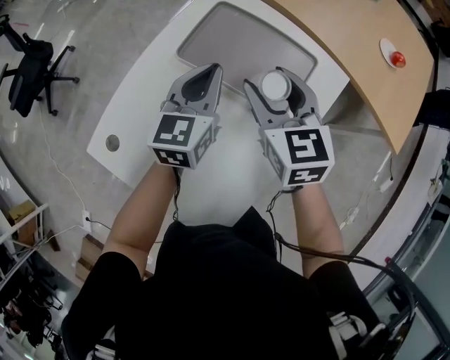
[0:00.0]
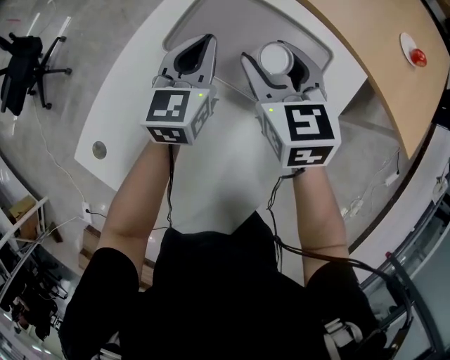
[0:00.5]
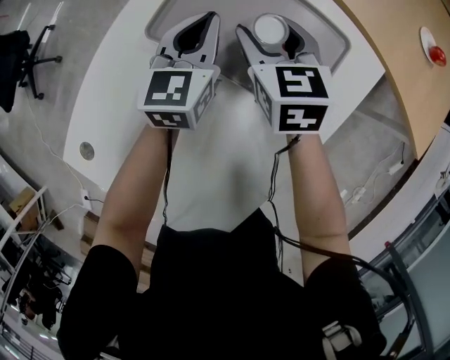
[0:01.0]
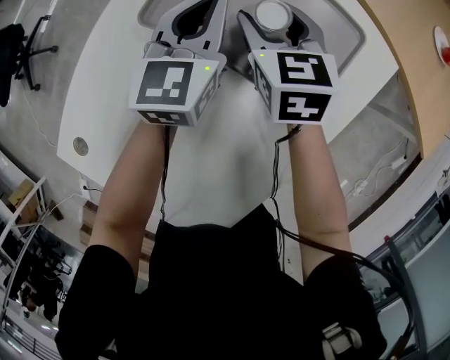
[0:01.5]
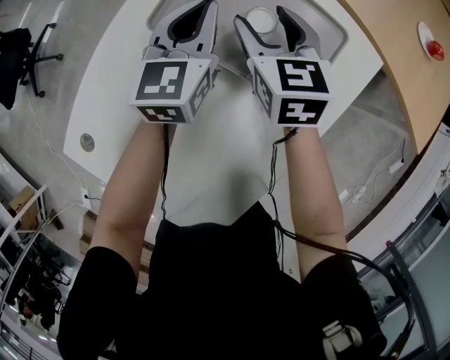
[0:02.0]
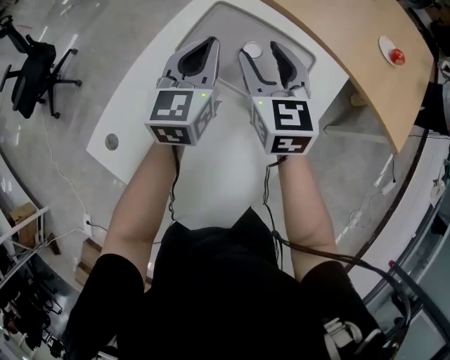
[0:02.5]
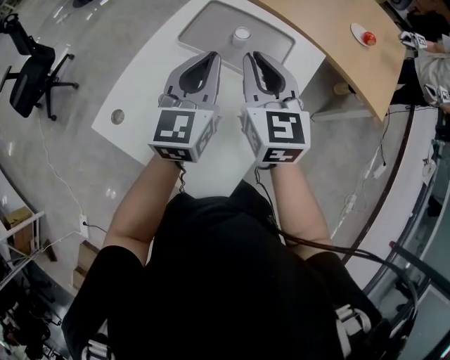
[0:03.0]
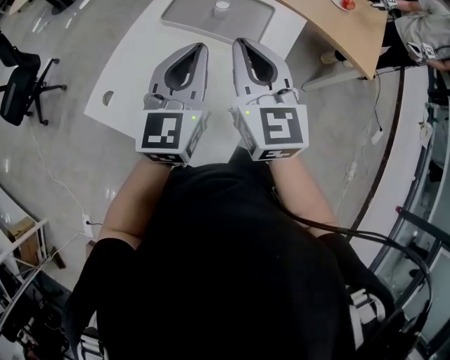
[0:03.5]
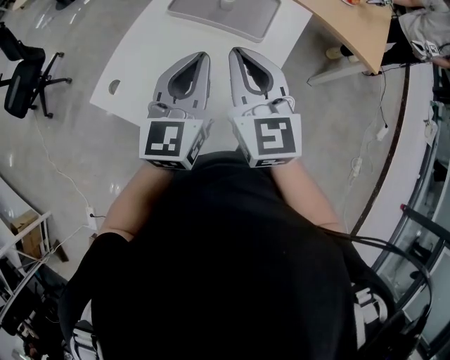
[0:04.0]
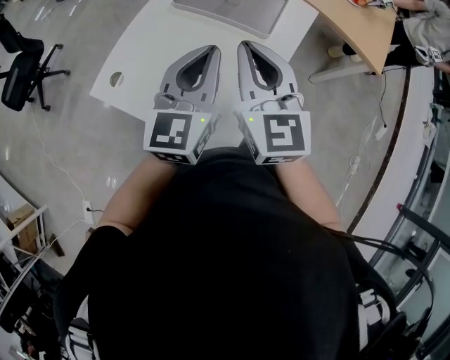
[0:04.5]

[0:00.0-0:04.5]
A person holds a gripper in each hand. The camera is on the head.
0:00.0 to 0:02.0: The right gripper travels downward and forward by some 20 cm. The left gripper travels forward and downward by some 15 cm.
0:02.0 to 0:04.5: The two grippers go roughly 50 cm backward and upward. The right gripper rotates some 20 degrees, and closes.

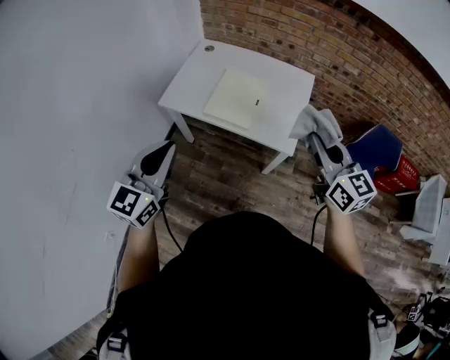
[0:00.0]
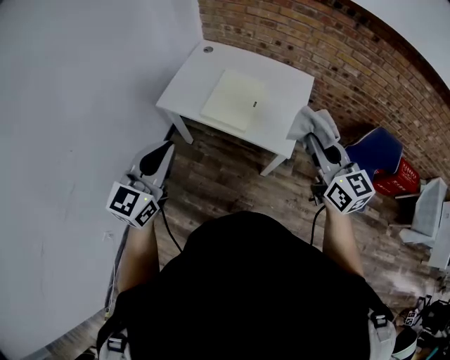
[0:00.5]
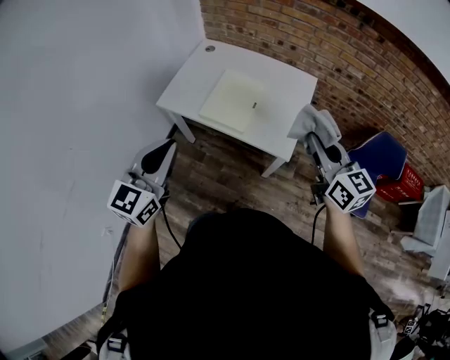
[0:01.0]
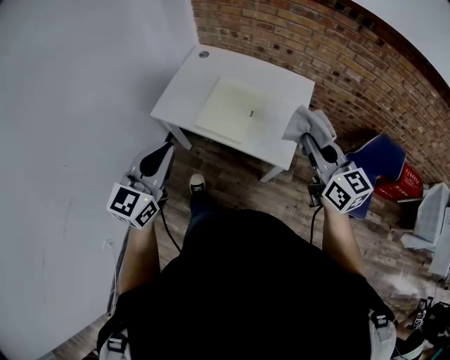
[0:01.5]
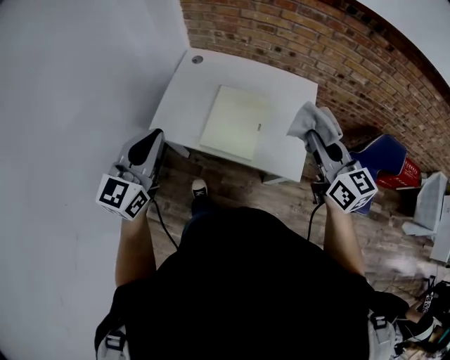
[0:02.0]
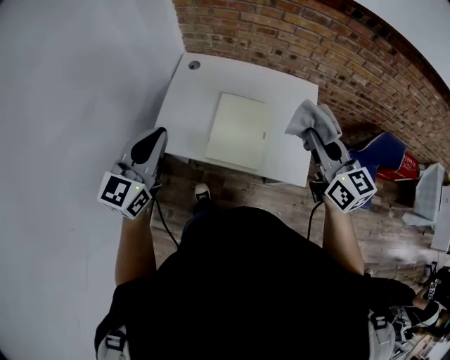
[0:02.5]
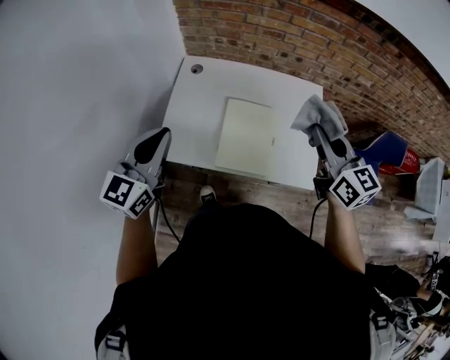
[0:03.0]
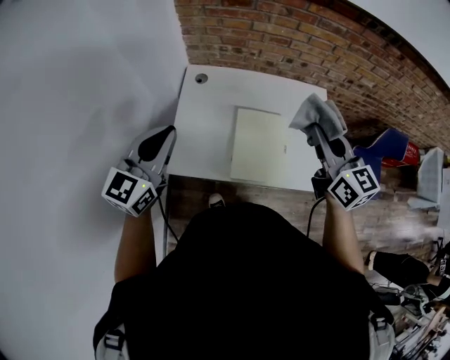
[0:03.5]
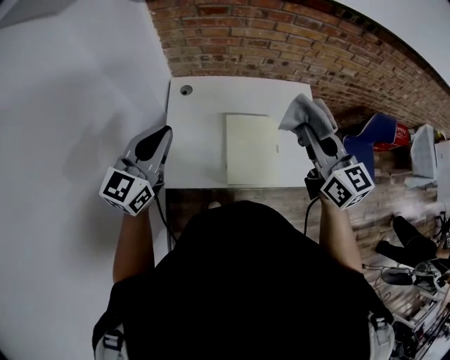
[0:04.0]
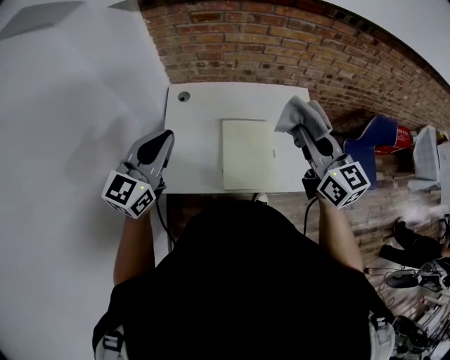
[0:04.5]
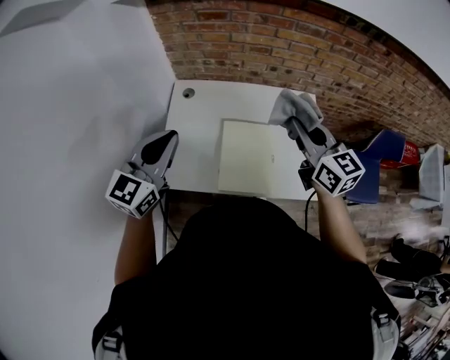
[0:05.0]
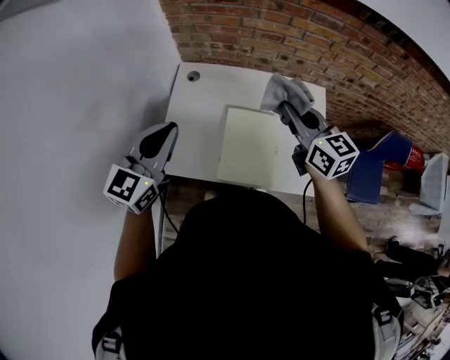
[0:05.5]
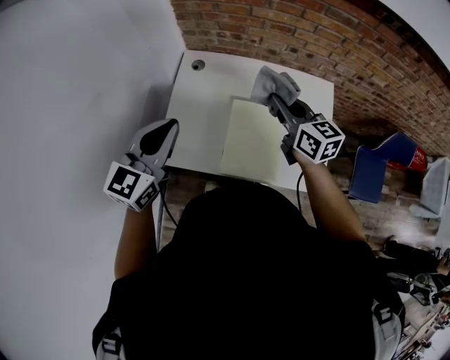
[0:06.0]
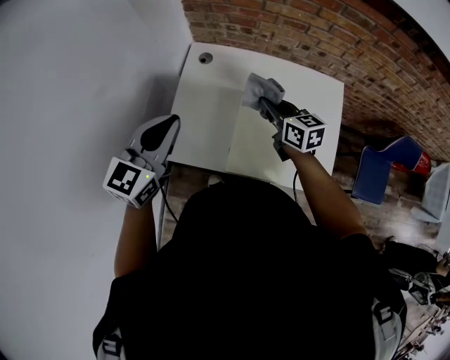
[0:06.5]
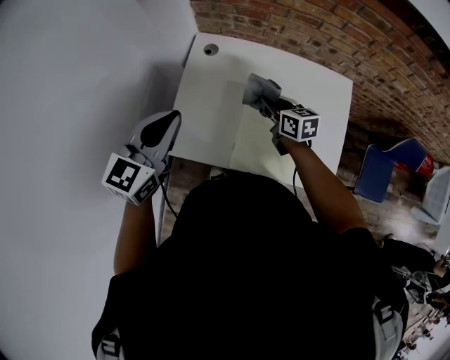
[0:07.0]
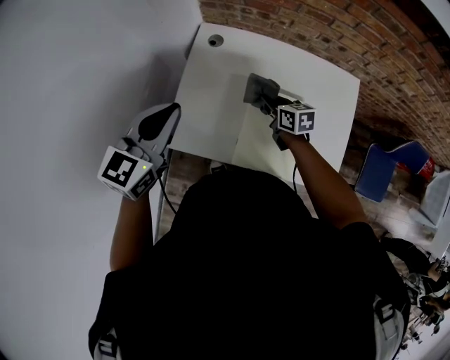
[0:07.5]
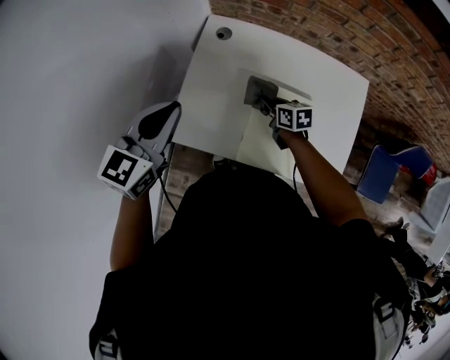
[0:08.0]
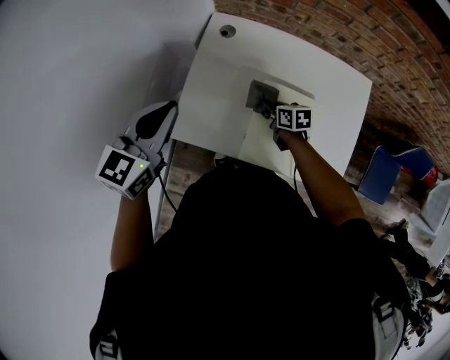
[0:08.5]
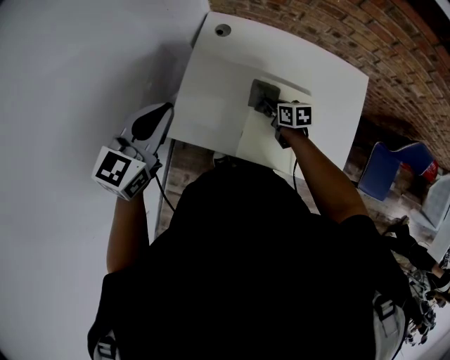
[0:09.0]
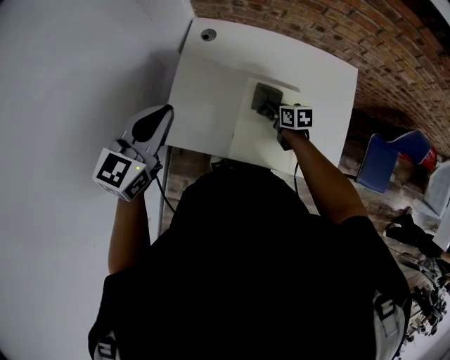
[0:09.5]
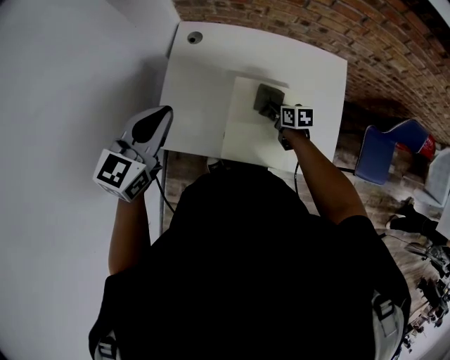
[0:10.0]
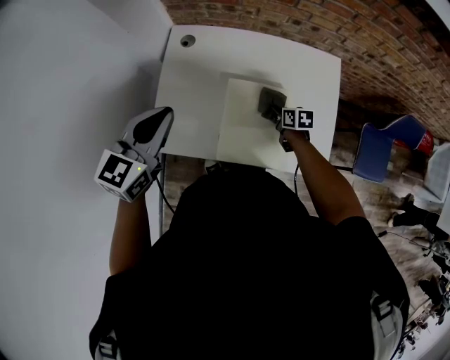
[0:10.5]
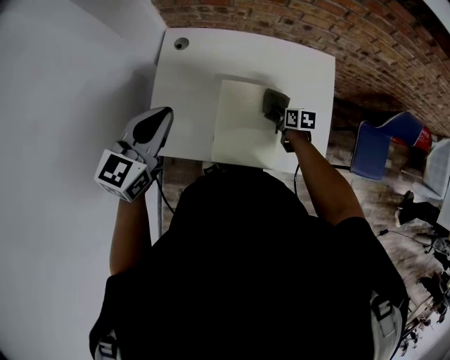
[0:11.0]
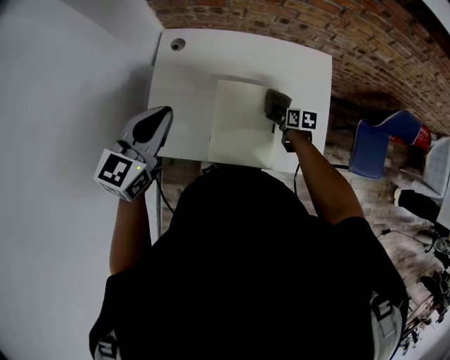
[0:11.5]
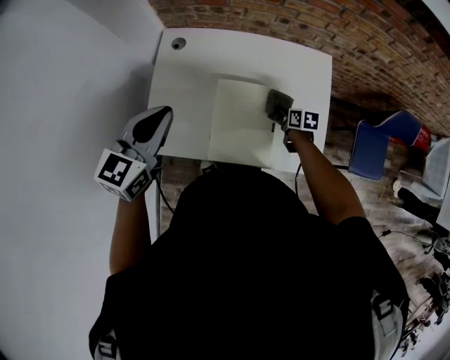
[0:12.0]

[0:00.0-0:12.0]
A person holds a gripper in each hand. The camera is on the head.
0:00.0 to 0:02.0: Both grippers move forward, about 20 cm.
0:02.0 to 0:04.0: The right gripper heads to the left and forward, covering roughly 20 cm; the left gripper travels forward and to the left by roughly 25 cm, and rotates roughly 20 degrees.
0:04.0 to 0:06.0: The right gripper shifts roughly 20 cm forward and downward. The left gripper is displaced to the right by approximately 5 cm.
0:06.0 to 0:08.0: The right gripper travels downward by some 30 cm, and turns by some 30 degrees. Meanwhile the left gripper travels to the left and downward by approximately 10 cm.
0:08.0 to 0:10.0: The right gripper moves to the right and backward, some 15 cm; the left gripper shifts some 5 cm to the right.
0:10.0 to 0:12.0: The right gripper is displaced to the right by roughly 10 cm. The left gripper heads to the right, covering some 5 cm.

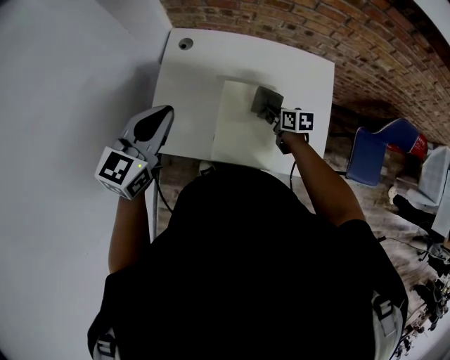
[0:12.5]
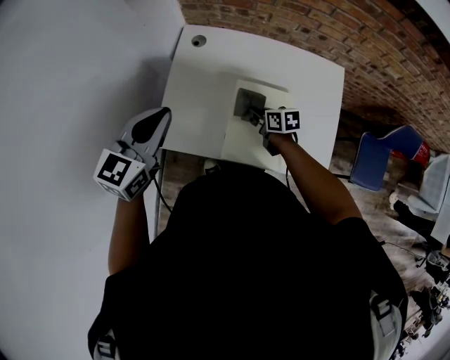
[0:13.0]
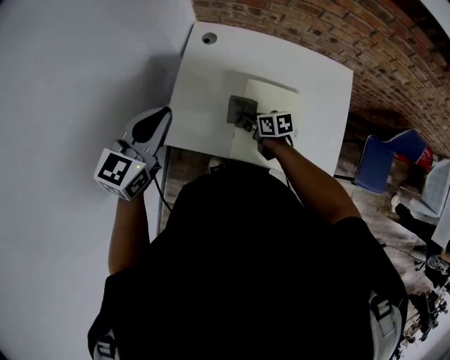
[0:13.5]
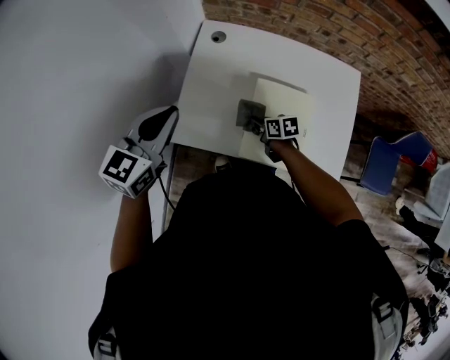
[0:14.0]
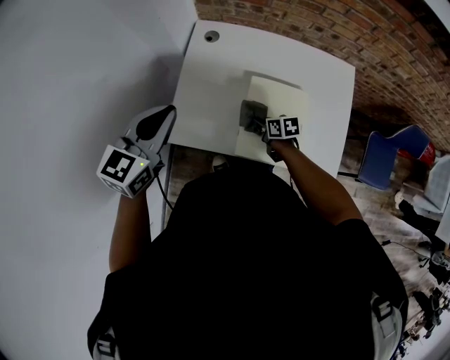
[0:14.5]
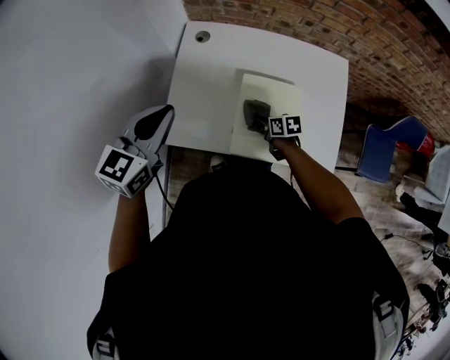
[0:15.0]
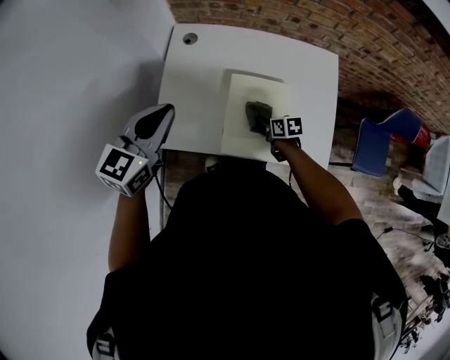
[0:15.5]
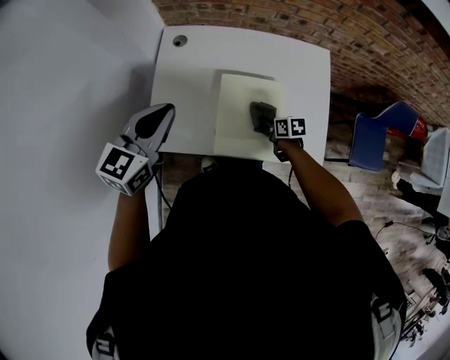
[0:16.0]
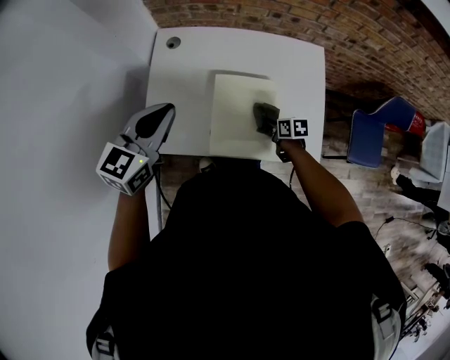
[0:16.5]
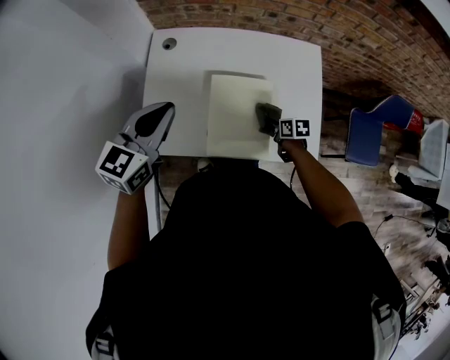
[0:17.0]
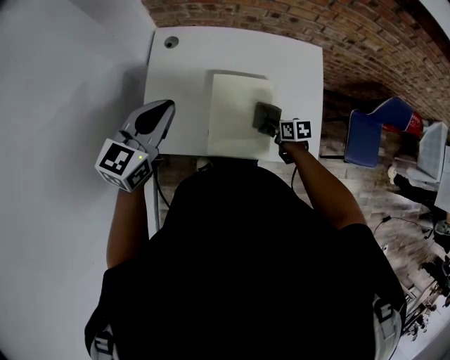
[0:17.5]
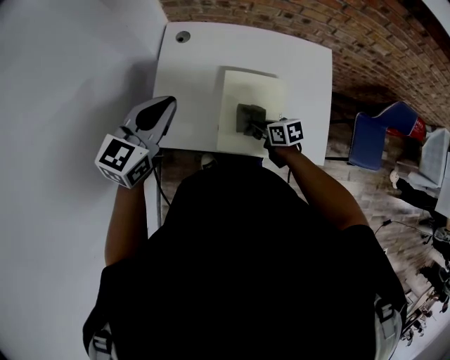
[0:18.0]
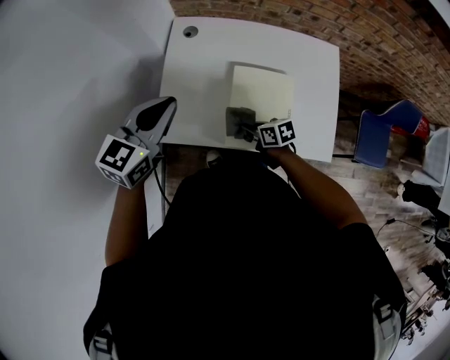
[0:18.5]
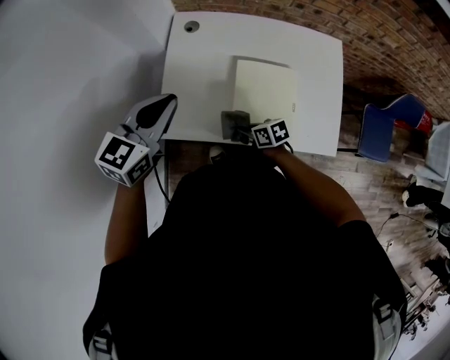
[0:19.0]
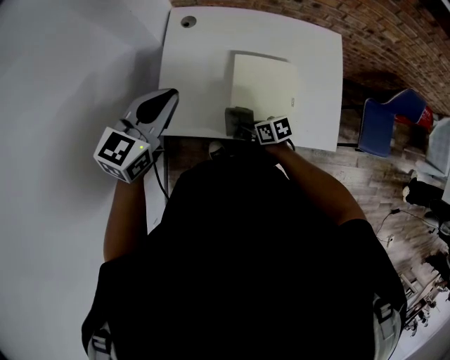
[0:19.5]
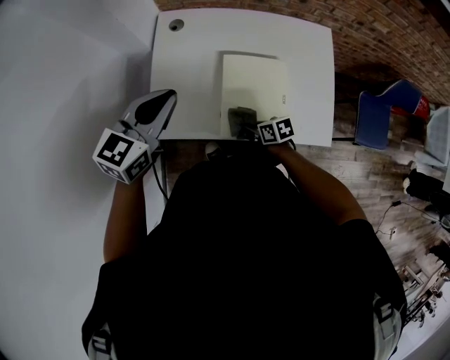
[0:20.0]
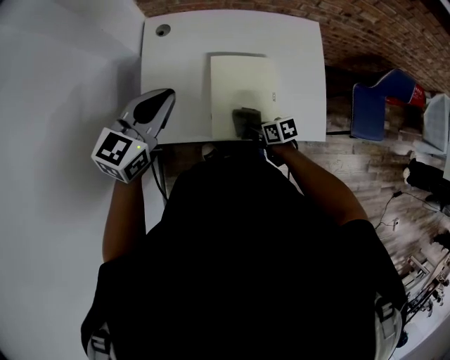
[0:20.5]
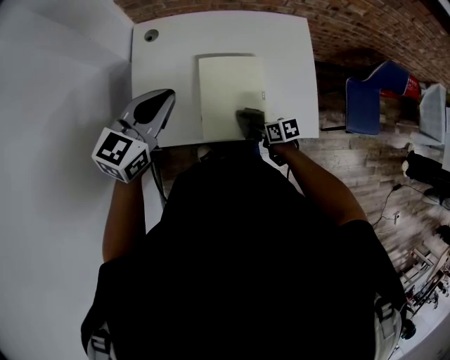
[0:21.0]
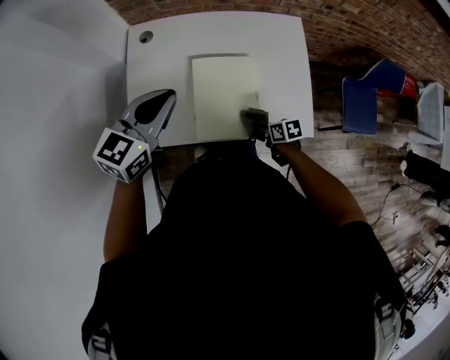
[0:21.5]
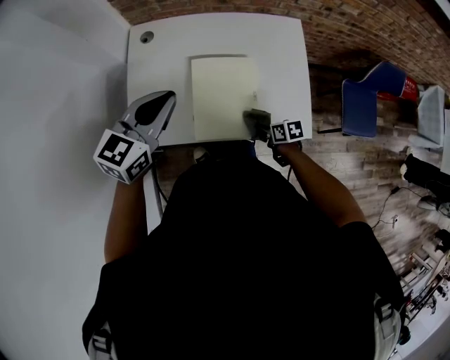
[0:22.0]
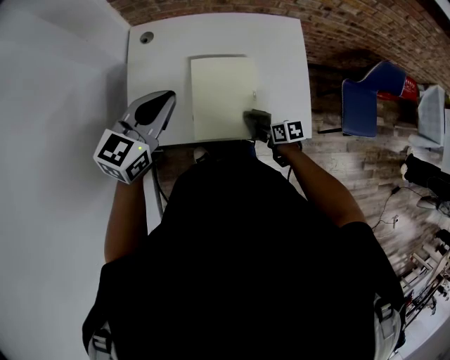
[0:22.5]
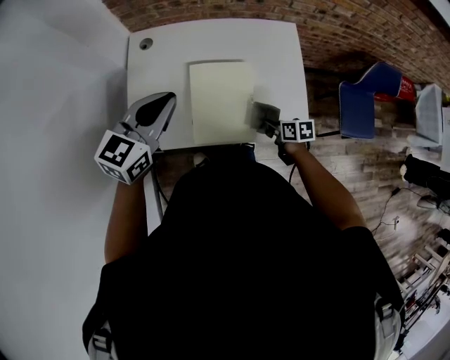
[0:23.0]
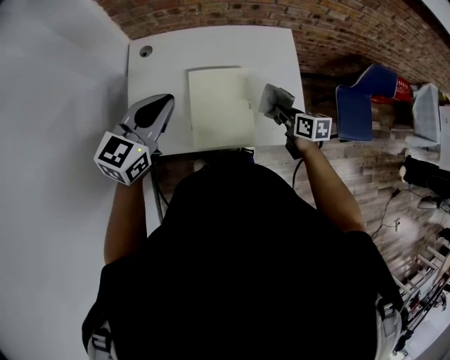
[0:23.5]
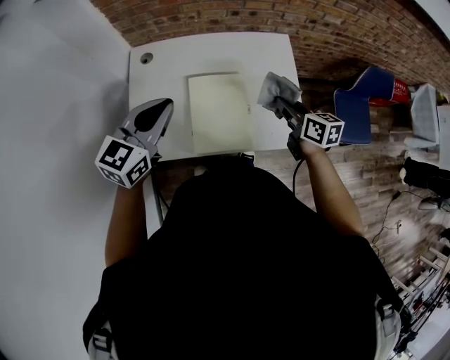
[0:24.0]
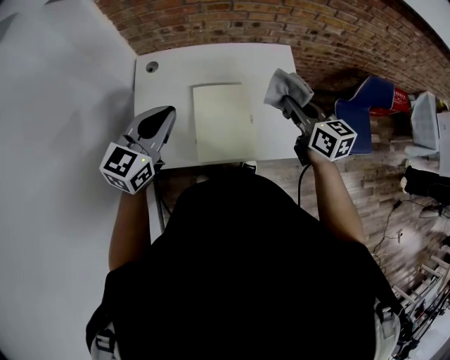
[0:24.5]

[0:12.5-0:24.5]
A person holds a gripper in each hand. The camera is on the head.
0:12.5 to 0:14.5: The left gripper travels to the left by some 10 cm. Meanwhile the right gripper goes some 15 cm to the left.
0:14.5 to 0:16.5: The left gripper goes some 10 cm to the right. Meanwhile the right gripper is displaced to the right by about 15 cm.
0:16.5 to 0:18.5: The right gripper shifts some 20 cm to the left. The left gripper shifts some 5 cm to the left.
0:18.5 to 0:20.5: The left gripper moves to the right, about 5 cm. Meanwhile the right gripper travels to the right, backward and downward by some 10 cm.
0:20.5 to 0:22.5: The right gripper shifts roughly 10 cm to the right. Meanwhile the left gripper heads to the right, covering roughly 5 cm.
0:22.5 to 0:24.5: The right gripper goes some 35 cm upward, and tilts its fingers about 30 degrees upward.
